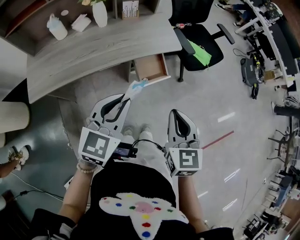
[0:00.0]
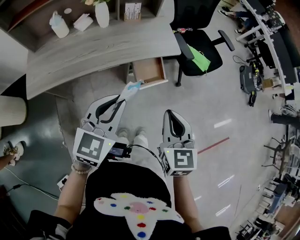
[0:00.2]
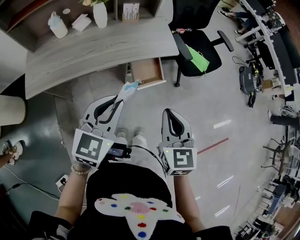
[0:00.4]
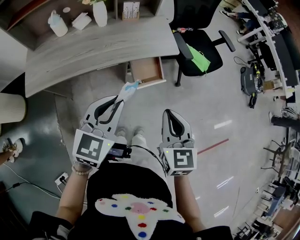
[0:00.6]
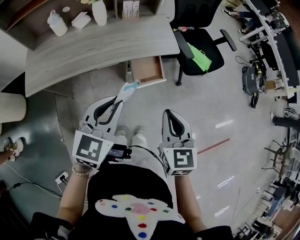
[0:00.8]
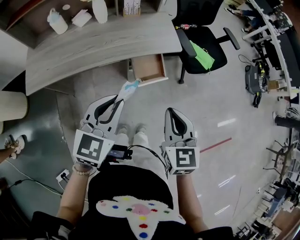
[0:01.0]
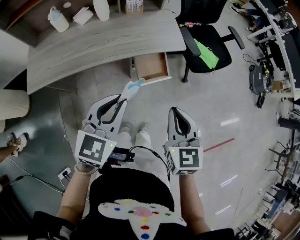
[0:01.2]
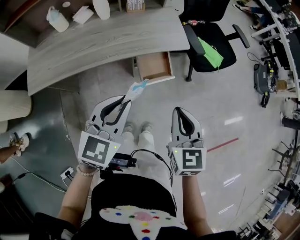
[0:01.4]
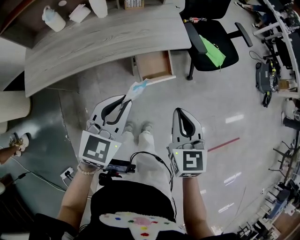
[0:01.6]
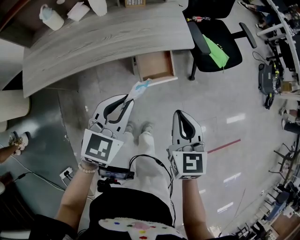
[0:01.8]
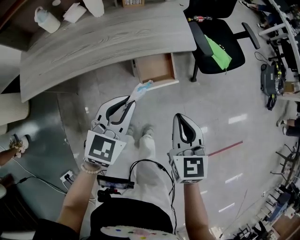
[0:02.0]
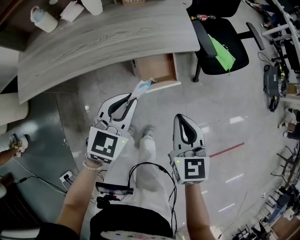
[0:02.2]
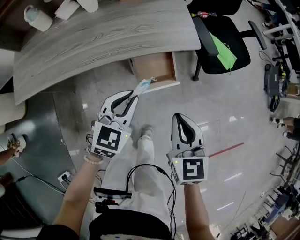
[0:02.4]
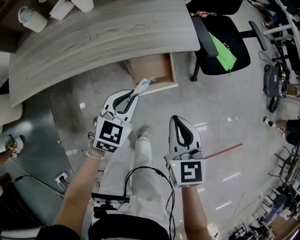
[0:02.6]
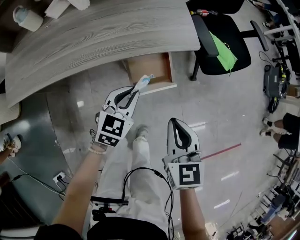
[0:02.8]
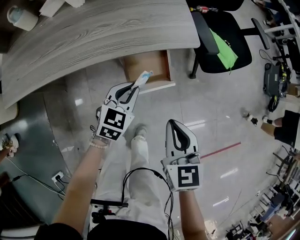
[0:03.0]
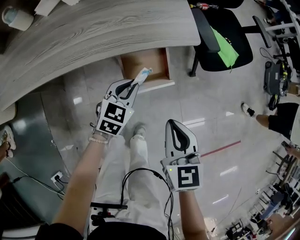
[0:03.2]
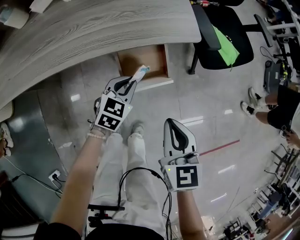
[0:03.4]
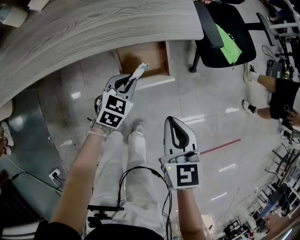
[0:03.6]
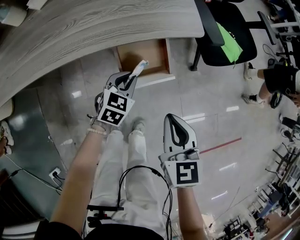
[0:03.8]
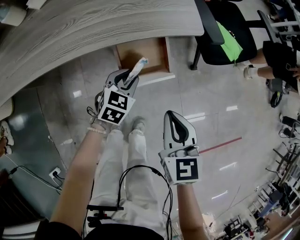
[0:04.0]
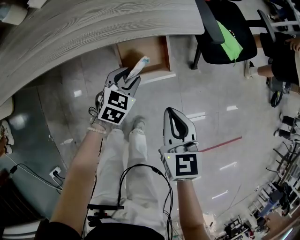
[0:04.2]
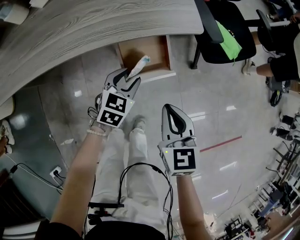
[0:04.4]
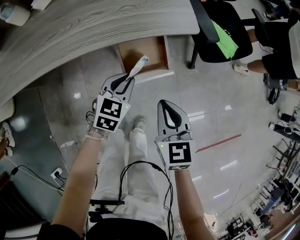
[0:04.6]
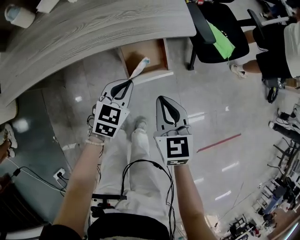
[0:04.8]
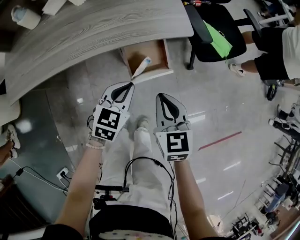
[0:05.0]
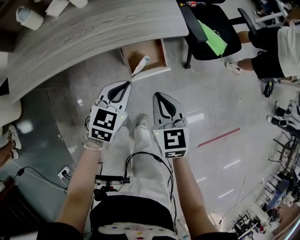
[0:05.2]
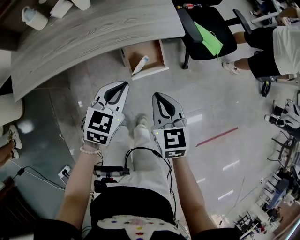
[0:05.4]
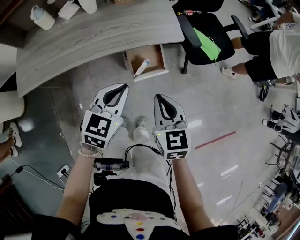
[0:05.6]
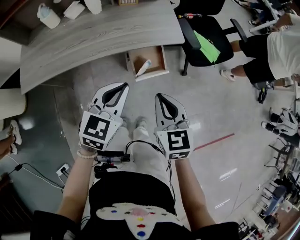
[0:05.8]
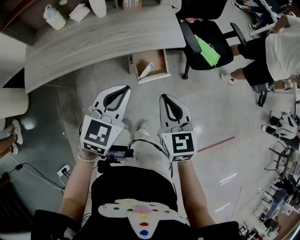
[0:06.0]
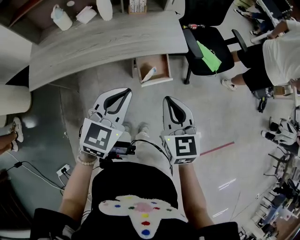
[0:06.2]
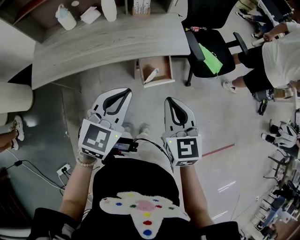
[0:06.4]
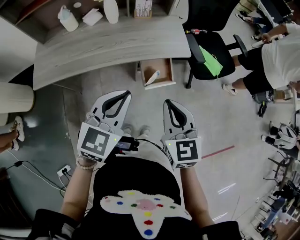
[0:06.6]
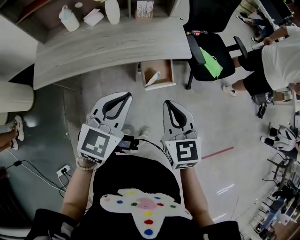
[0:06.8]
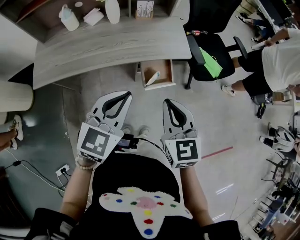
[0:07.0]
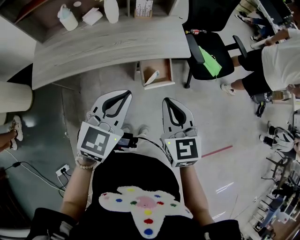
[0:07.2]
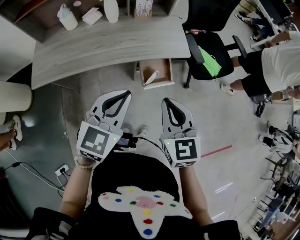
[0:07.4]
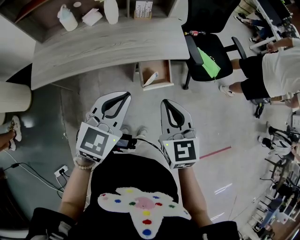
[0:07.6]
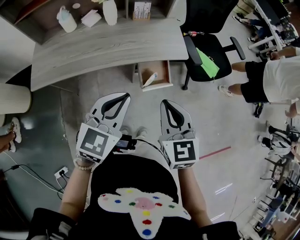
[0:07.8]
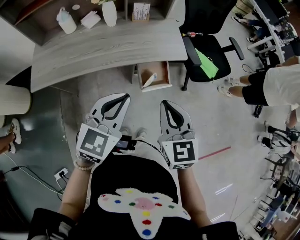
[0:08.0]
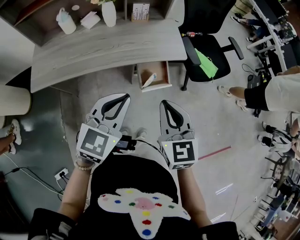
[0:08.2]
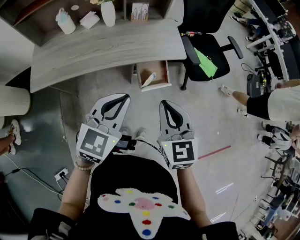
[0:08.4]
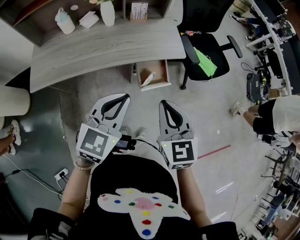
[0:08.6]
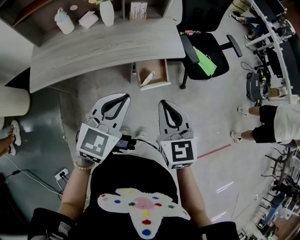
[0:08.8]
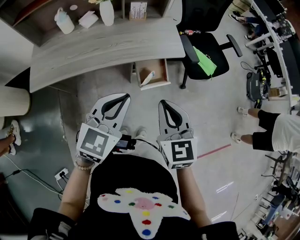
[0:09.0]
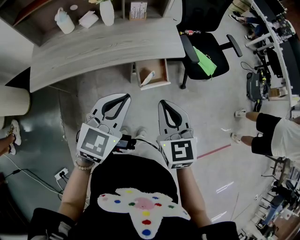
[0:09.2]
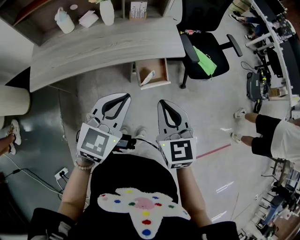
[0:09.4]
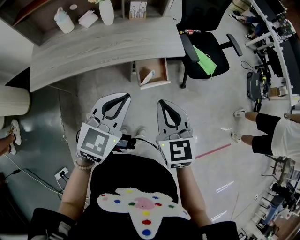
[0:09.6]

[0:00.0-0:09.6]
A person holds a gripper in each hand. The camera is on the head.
0.0 to 1.6 s: The right gripper travels forward and downward by some 10 cm. Meanwhile the left gripper heads downward, covering roughly 5 cm.
1.6 to 3.2 s: The left gripper shifts approximately 30 cm downward and forward, while the right gripper shifts about 15 cm downward and forward.
3.2 to 4.8 s: The left gripper shifts by some 5 cm, and opens and closes again.
4.8 to 6.4 s: Both grippers travel together upward, roughly 25 cm.
6.4 to 9.6 s: The grippers stay close to where they were, moving slightly.

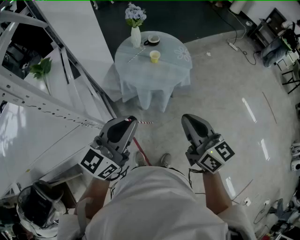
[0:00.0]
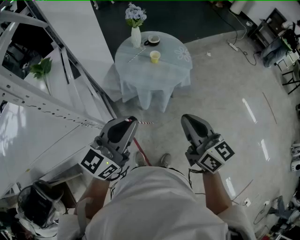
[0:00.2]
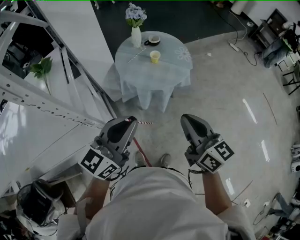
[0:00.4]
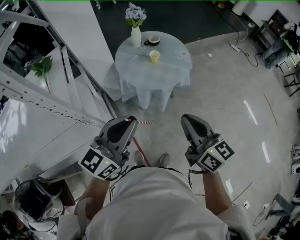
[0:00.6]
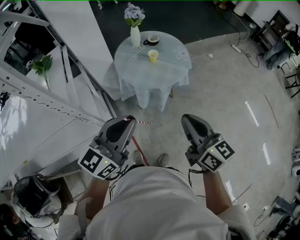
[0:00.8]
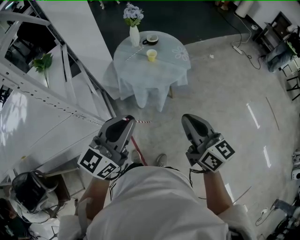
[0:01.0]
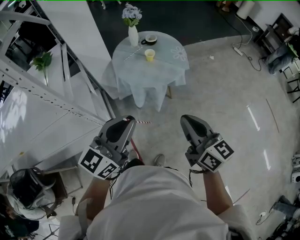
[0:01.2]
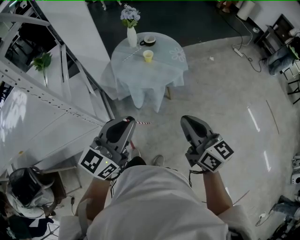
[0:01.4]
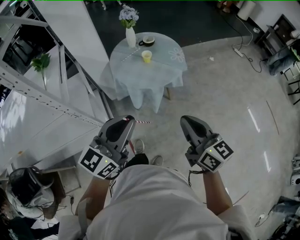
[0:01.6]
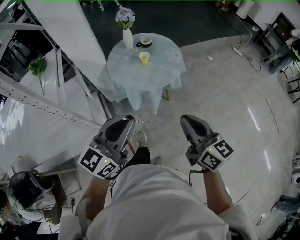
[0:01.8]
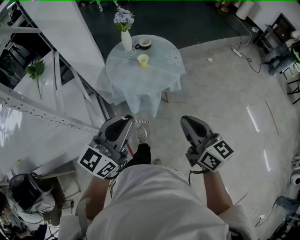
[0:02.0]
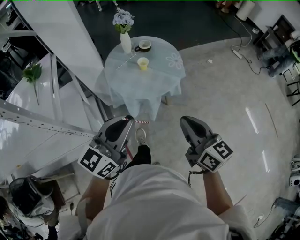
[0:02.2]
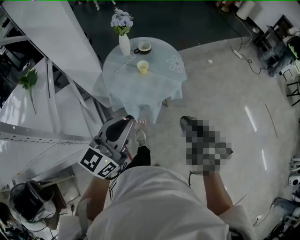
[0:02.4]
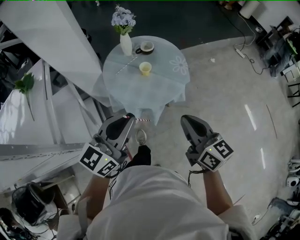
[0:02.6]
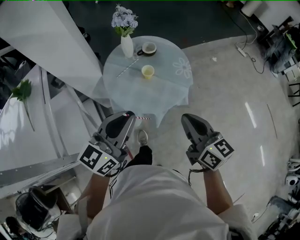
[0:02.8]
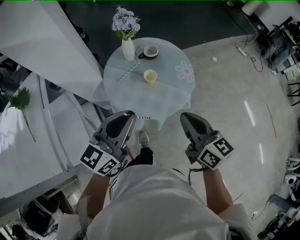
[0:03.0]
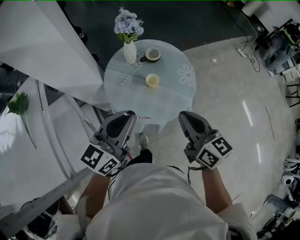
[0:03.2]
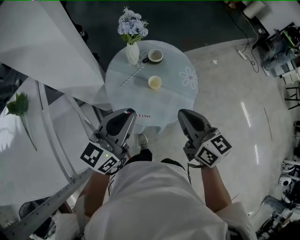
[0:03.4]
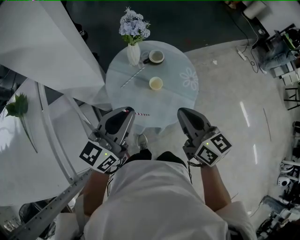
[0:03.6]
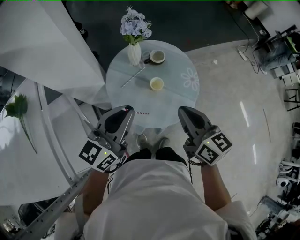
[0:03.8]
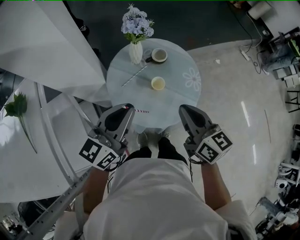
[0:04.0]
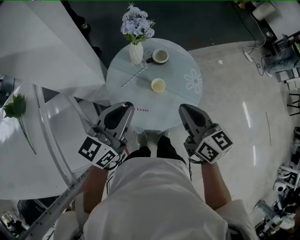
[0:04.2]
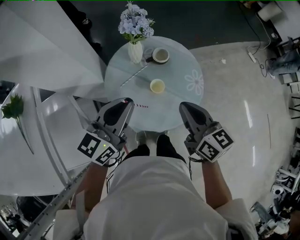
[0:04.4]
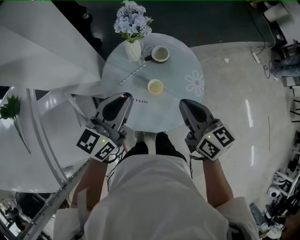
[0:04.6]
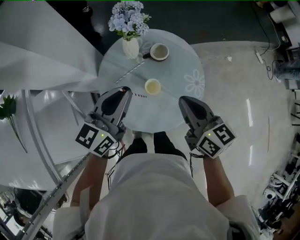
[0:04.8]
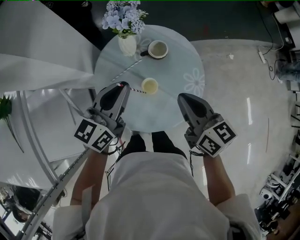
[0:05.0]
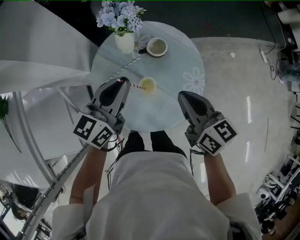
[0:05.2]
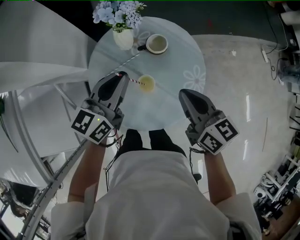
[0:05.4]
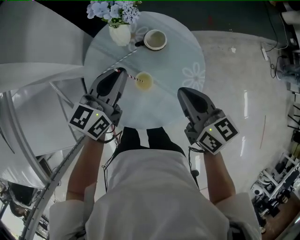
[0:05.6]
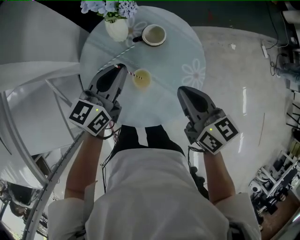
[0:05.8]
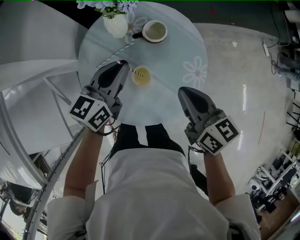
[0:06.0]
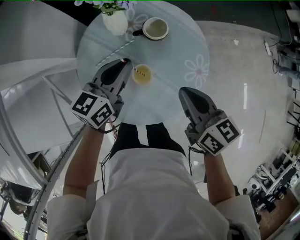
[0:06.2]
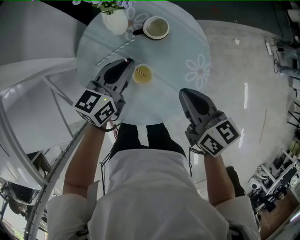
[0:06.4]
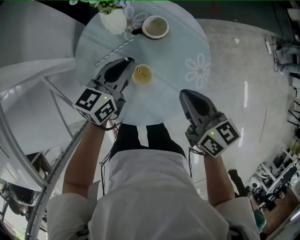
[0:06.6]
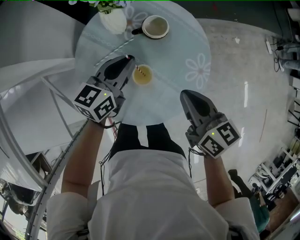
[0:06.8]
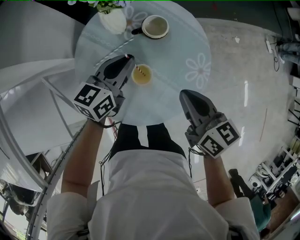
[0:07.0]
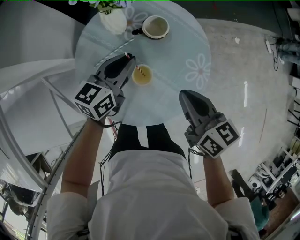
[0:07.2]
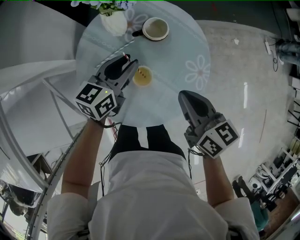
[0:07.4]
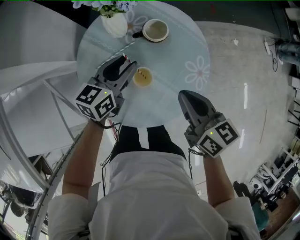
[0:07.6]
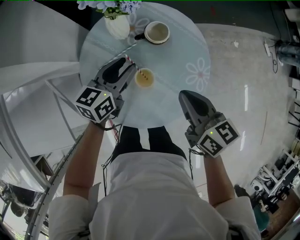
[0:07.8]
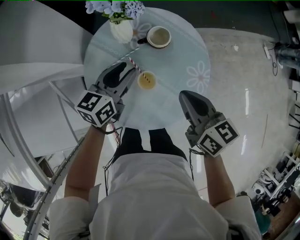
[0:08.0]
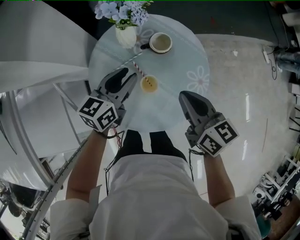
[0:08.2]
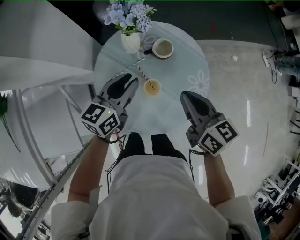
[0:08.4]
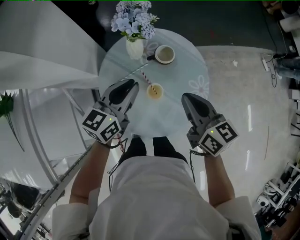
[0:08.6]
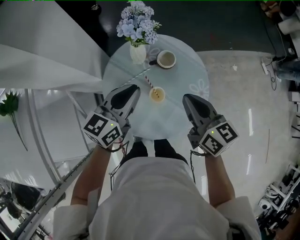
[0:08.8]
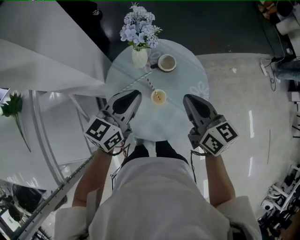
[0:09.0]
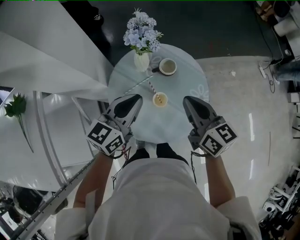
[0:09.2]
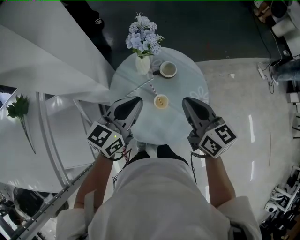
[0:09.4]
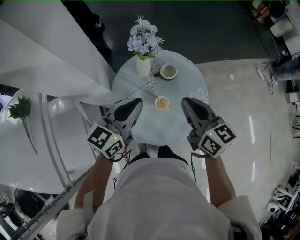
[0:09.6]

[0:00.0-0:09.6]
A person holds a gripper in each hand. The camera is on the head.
0.0 to 1.6 s: The two grippers go about 10 cm to the right.
1.6 to 3.2 s: The grippers both shift forward by about 30 cm.
3.2 to 4.8 s: The two grippers go about 20 cm forward.
4.8 to 6.4 s: The left gripper heads downward and forward, covering about 20 cm. The right gripper moves downward, approximately 10 cm.
6.4 to 8.0 s: The left gripper opens.
8.0 to 9.6 s: The left gripper heads upward, covering approximately 20 cm, and closes up. The right gripper travels upward and to the left by about 15 cm.

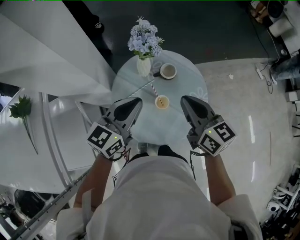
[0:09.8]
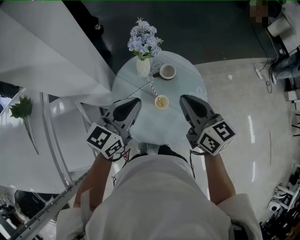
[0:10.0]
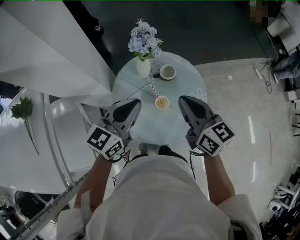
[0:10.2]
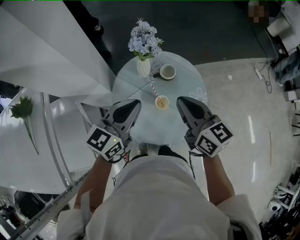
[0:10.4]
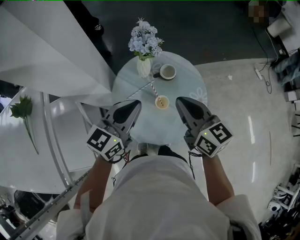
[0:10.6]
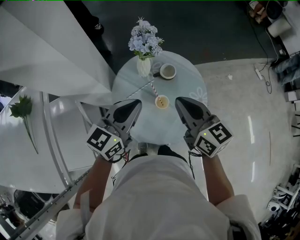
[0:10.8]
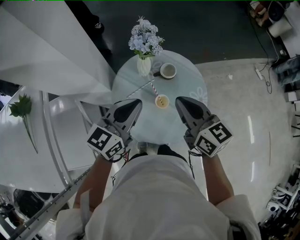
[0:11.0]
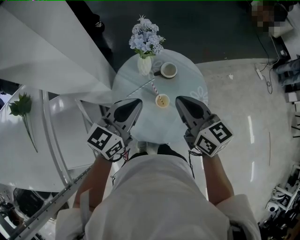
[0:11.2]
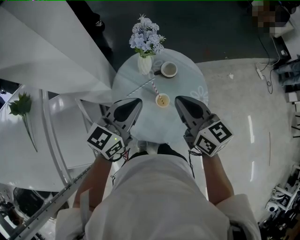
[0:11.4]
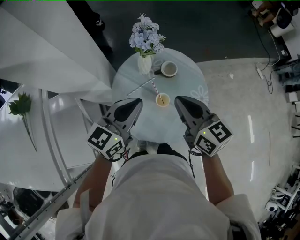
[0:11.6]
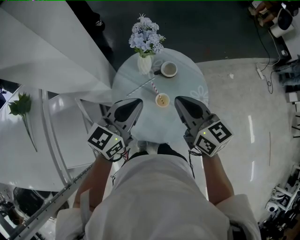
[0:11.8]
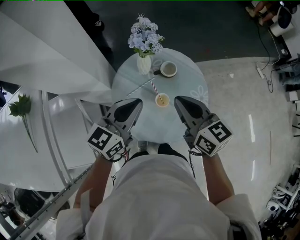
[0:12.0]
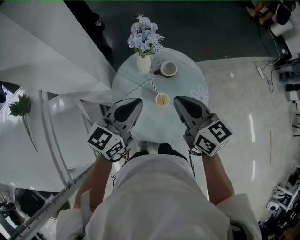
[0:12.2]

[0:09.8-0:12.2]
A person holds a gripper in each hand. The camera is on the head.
9.8 to 11.0 s: The grippers move only a little.
11.0 to 12.2 s: Neither gripper changes place.

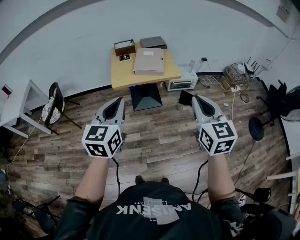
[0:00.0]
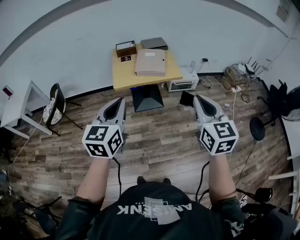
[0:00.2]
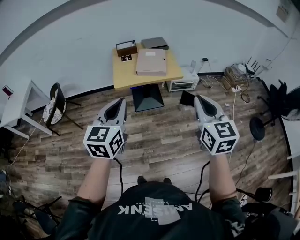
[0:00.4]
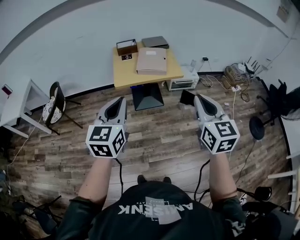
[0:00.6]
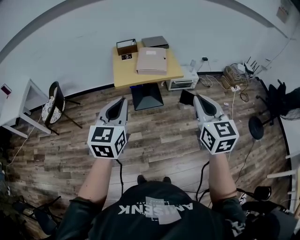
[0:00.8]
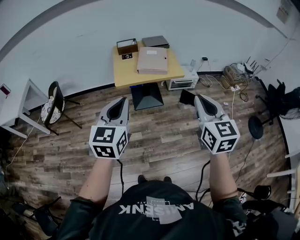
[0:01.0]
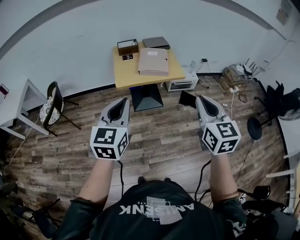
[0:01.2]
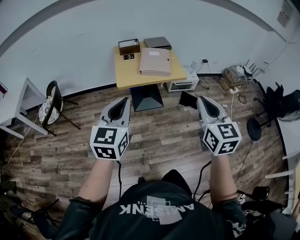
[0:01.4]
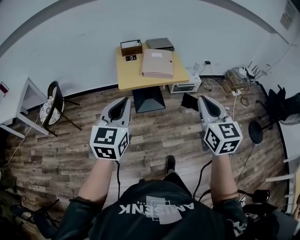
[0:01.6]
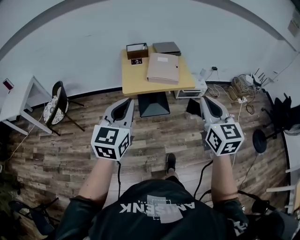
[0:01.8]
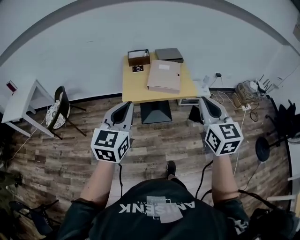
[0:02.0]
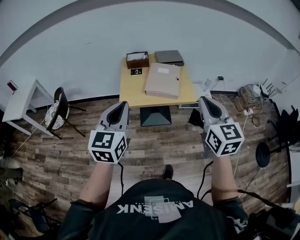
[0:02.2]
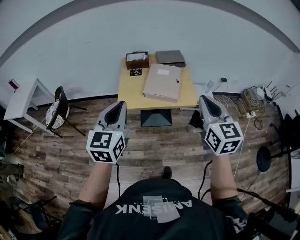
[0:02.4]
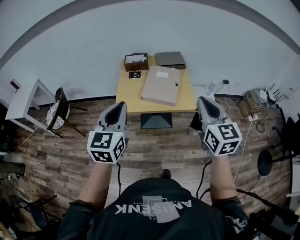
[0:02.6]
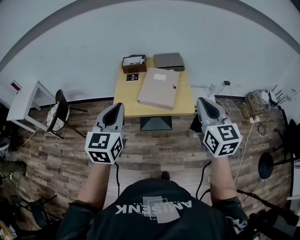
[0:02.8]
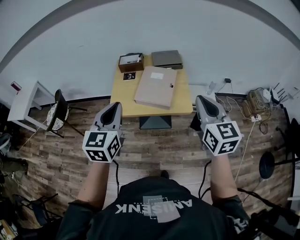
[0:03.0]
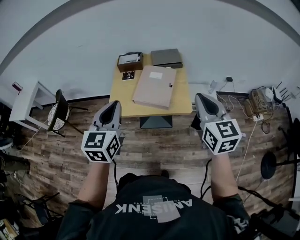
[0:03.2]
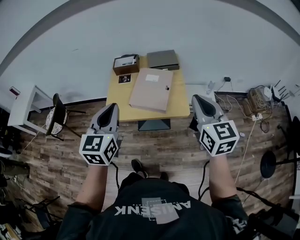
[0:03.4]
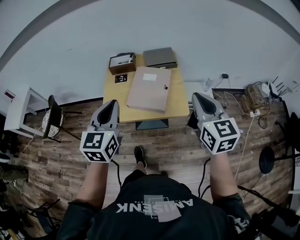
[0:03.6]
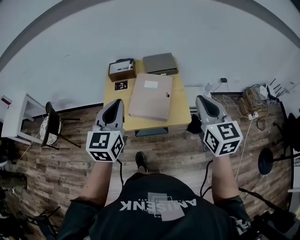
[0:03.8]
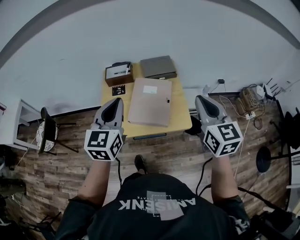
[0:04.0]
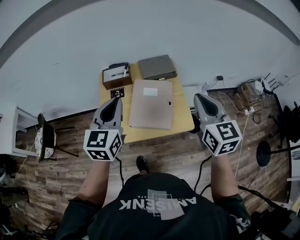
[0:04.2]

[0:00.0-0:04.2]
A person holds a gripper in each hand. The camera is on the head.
0.0 to 1.4 s: The two grippers go about 5 cm to the left.
1.4 to 2.8 s: The grippers both shift forward and to the right by roughly 30 cm.
2.8 to 4.2 s: Both grippers move forward, roughly 25 cm.
